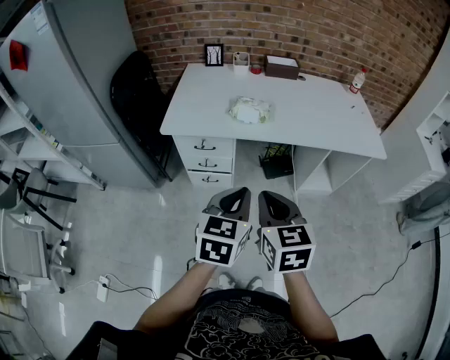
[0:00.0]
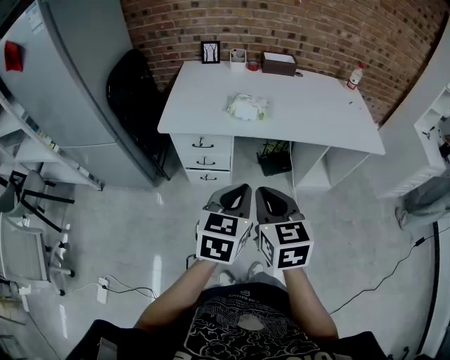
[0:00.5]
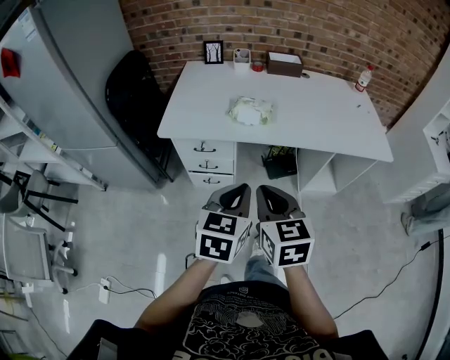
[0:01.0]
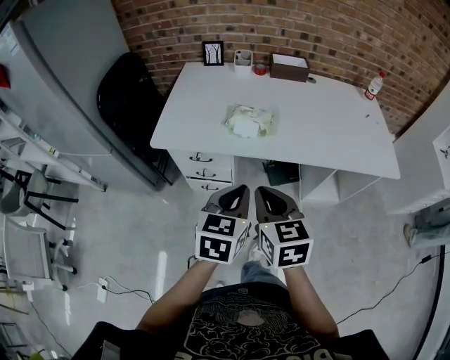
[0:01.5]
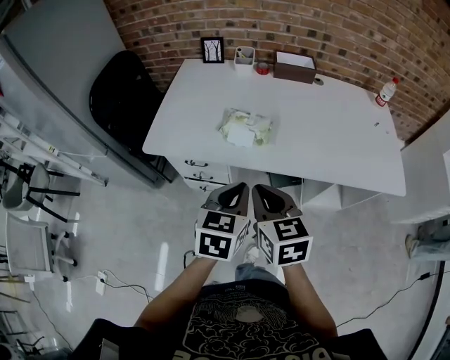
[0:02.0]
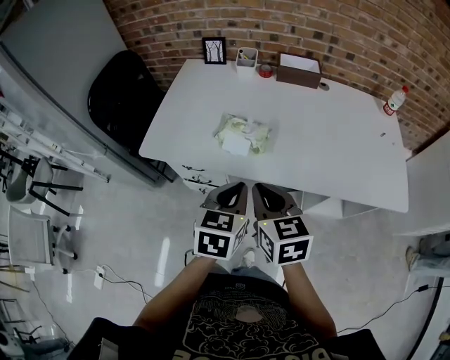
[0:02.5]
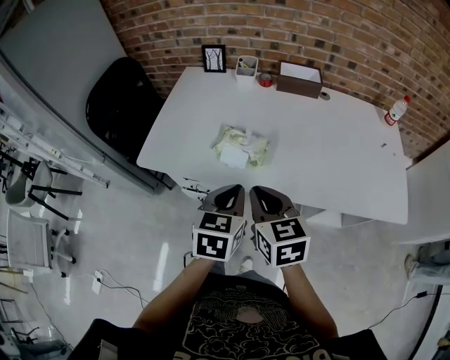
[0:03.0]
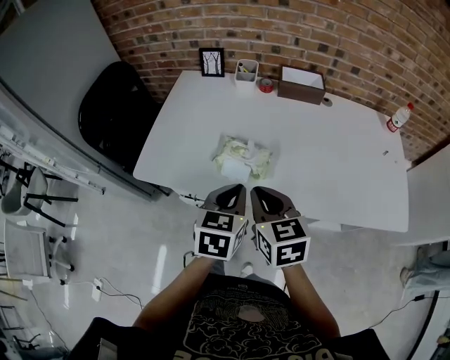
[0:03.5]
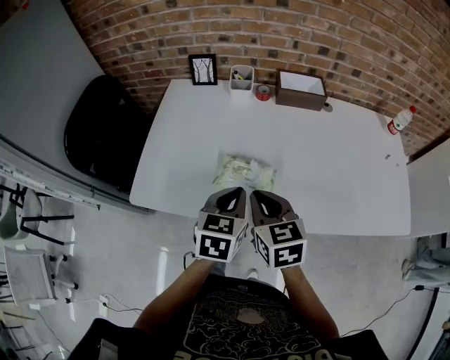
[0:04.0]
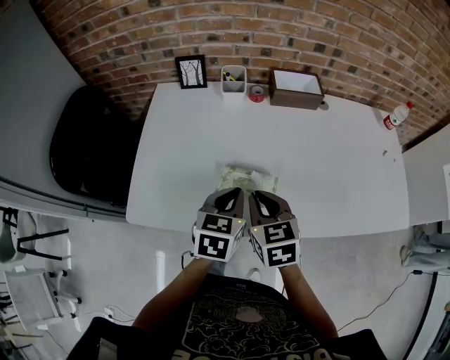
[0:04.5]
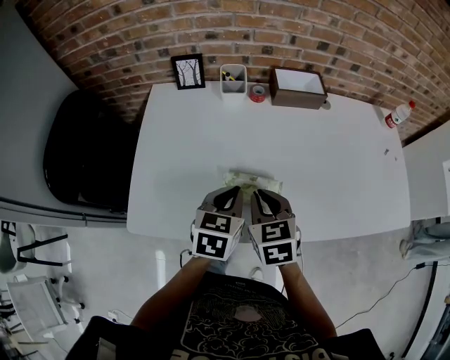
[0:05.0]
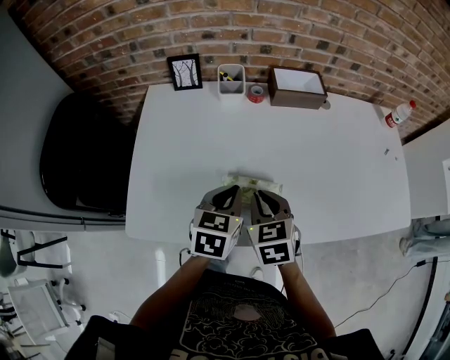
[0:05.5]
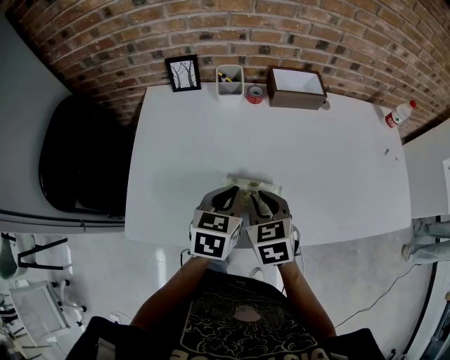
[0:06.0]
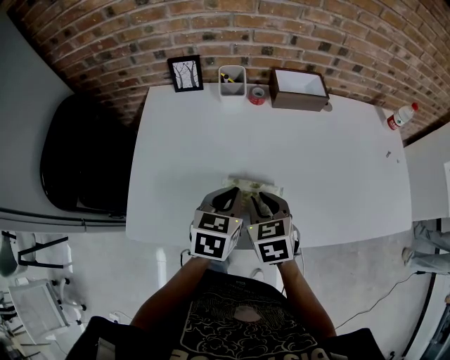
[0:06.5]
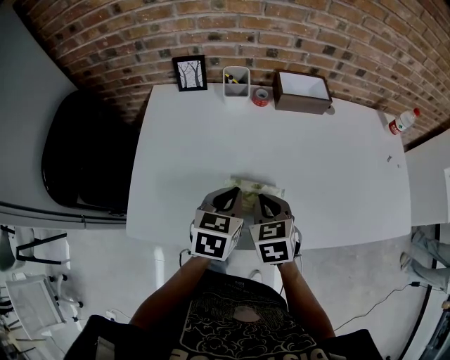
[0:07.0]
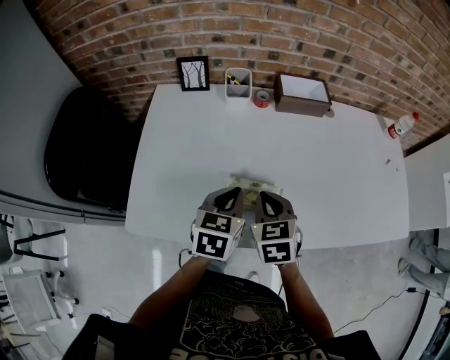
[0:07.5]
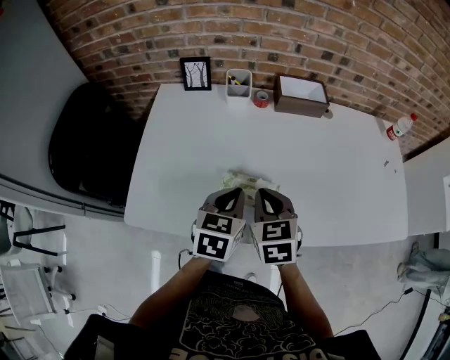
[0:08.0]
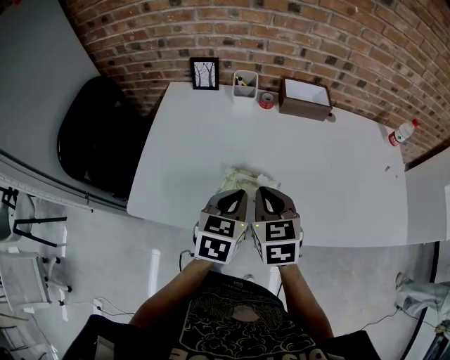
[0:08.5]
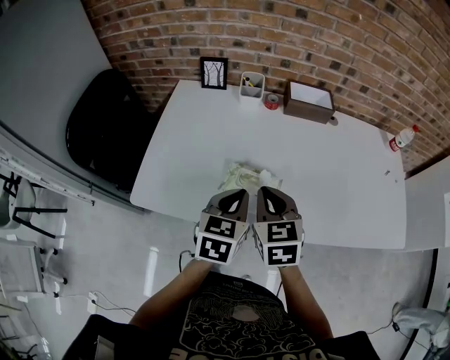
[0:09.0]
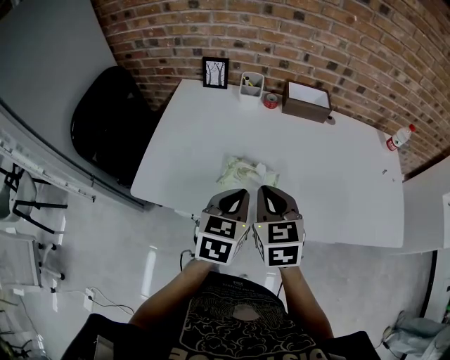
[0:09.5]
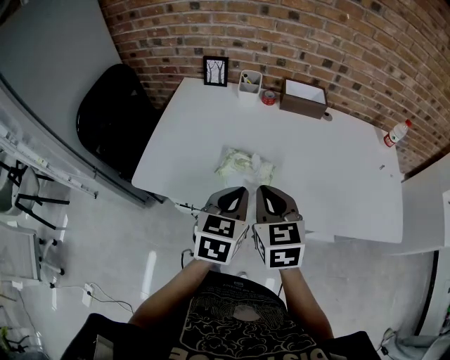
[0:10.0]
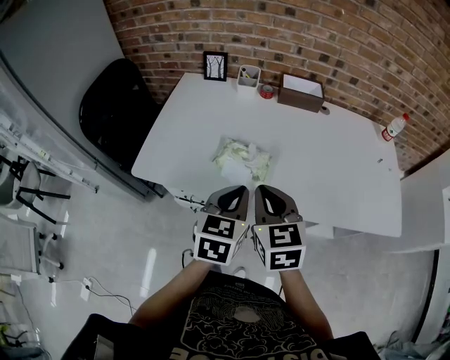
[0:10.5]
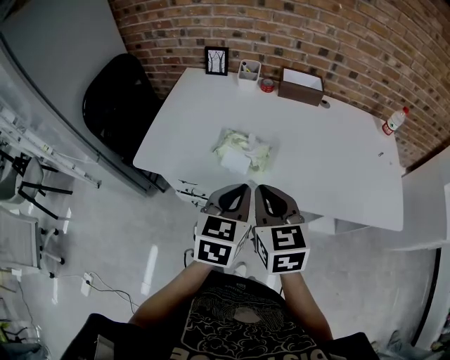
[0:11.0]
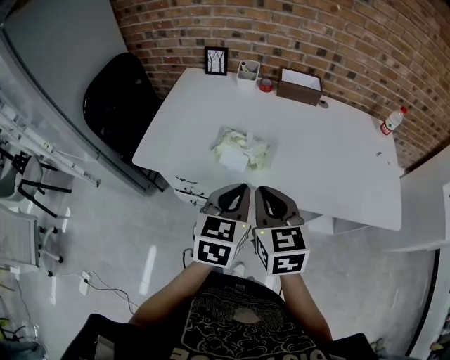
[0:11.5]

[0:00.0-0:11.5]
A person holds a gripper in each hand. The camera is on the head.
0:00.0 to 0:02.0: Both grippers travel together forward, some 20 cm.
0:02.0 to 0:04.0: The two grippers go about 20 cm forward.
0:04.0 to 0:06.0: The left gripper is displaced forward by about 10 cm. Meanwhile the right gripper travels forward and downward by roughly 10 cm.
0:06.0 to 0:07.5: The grippers make only small movements.
0:07.5 to 0:09.5: The right gripper heads upward and backward, covering approximately 10 cm, while the left gripper is displaced backward by some 10 cm.
0:09.5 to 0:11.5: The two grippers go about 10 cm backward.

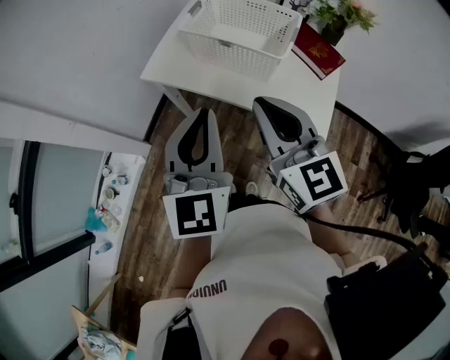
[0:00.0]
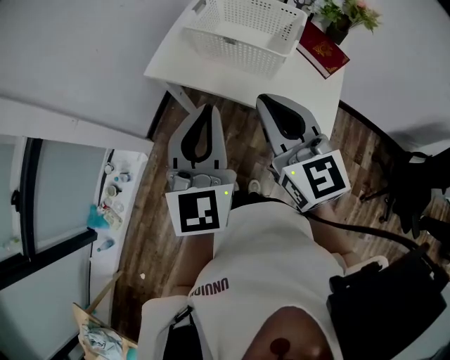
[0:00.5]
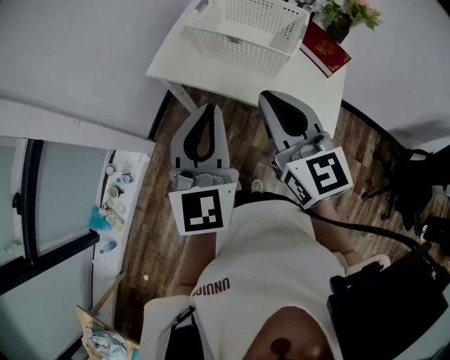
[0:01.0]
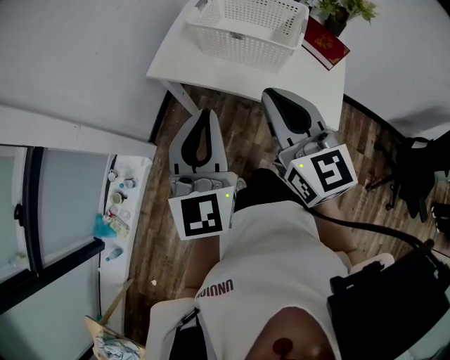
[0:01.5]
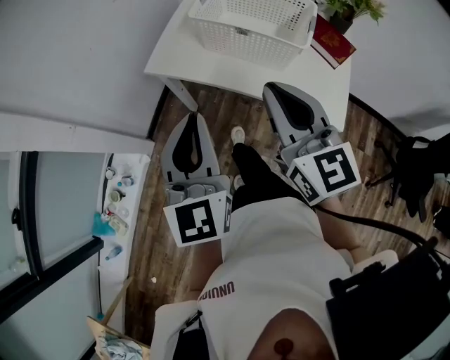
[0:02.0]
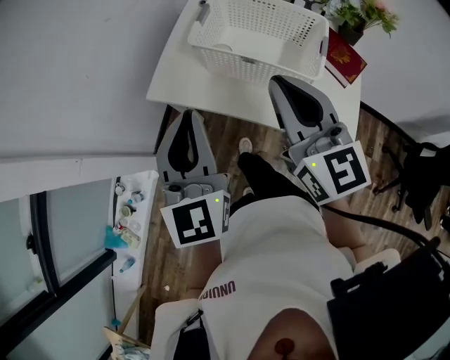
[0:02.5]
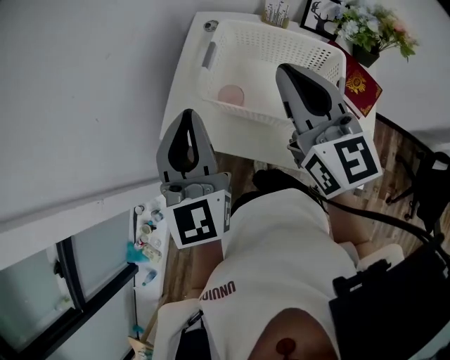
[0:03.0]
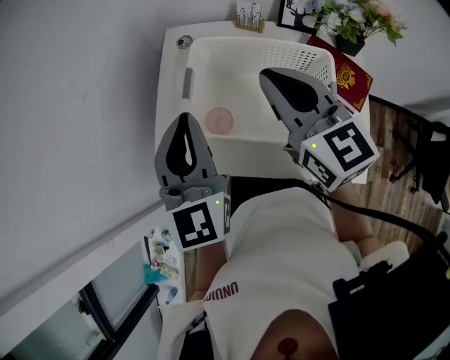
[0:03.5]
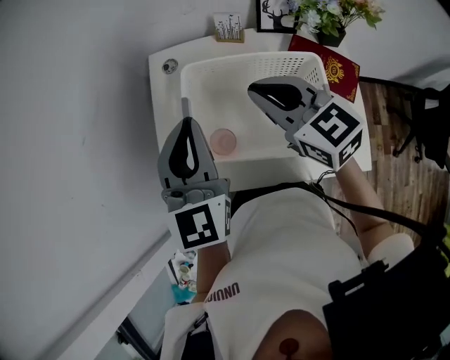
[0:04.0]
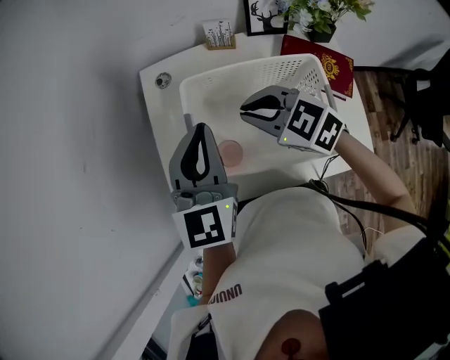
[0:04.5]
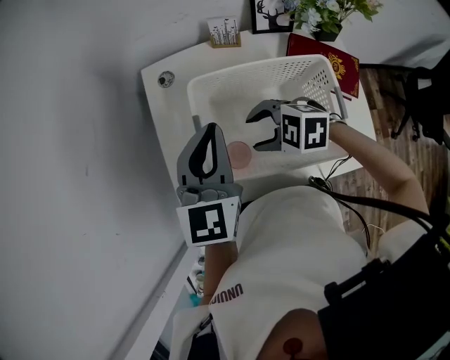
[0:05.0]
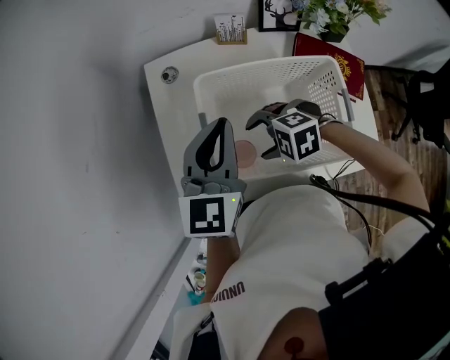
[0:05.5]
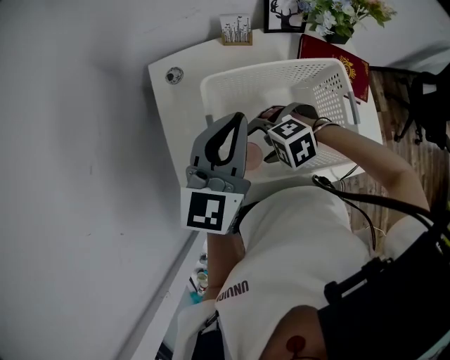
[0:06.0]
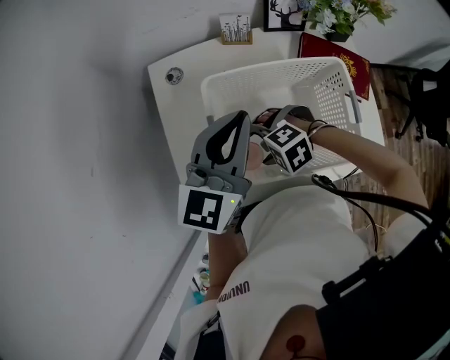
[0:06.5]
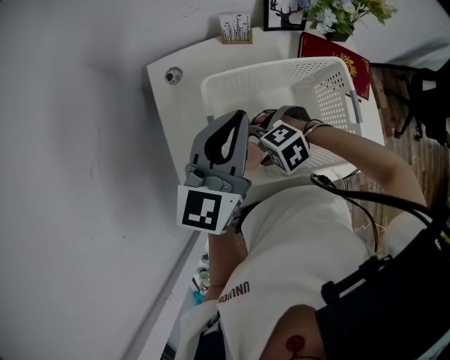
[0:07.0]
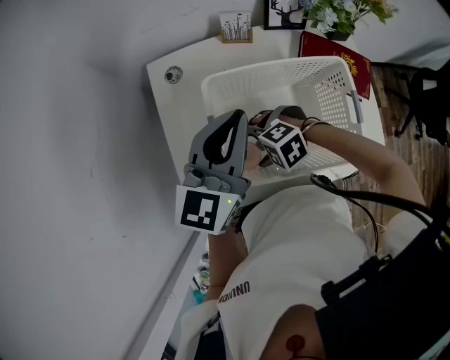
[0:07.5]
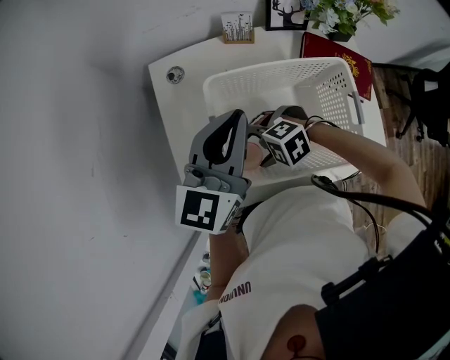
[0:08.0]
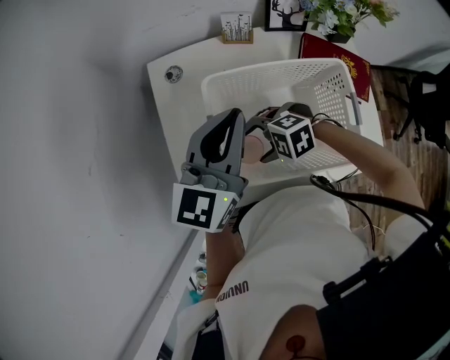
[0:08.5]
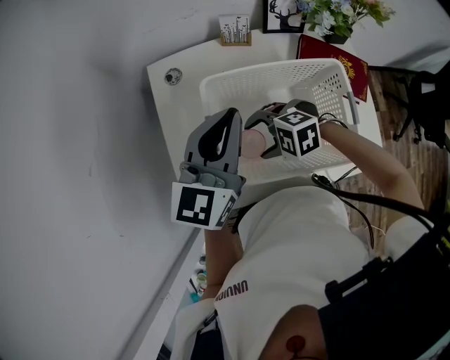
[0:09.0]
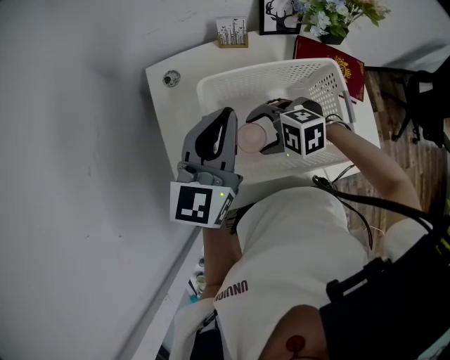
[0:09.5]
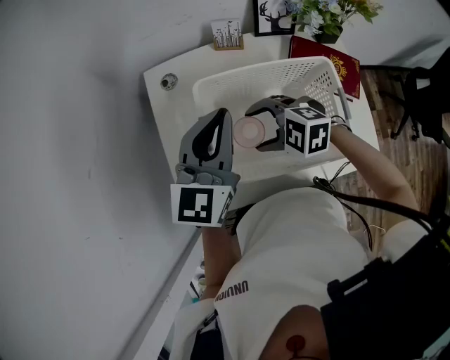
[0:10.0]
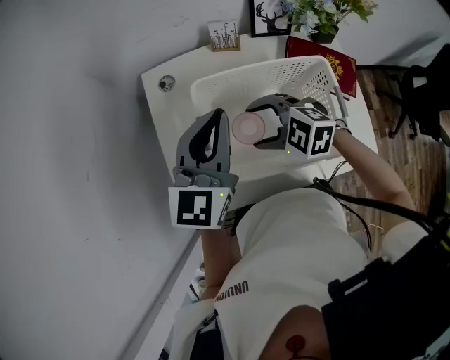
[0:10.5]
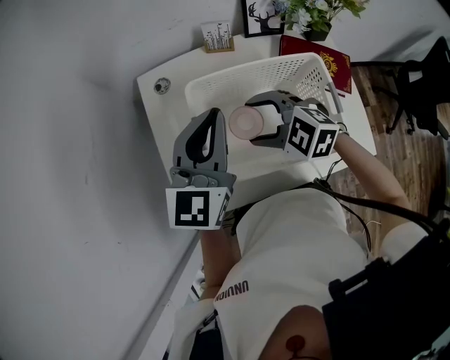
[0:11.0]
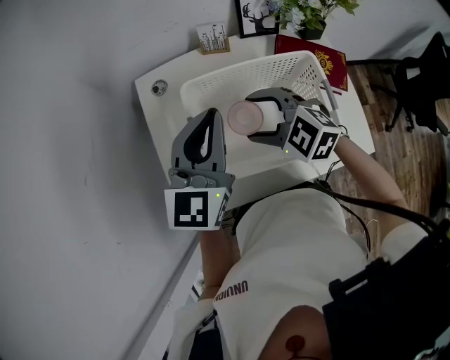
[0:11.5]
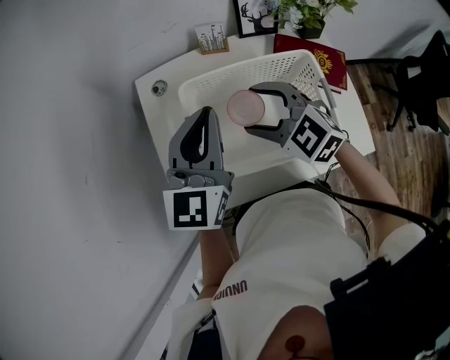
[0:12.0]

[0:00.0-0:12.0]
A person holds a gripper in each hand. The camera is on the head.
0:00.0 to 0:02.0: The left gripper is displaced to the left by approximately 10 cm, while the right gripper changes place by approximately 5 cm.
0:02.0 to 0:04.0: Both grippers travel together forward, roughly 35 cm. The left gripper turns by about 20 degrees.
0:04.0 to 0:06.0: The right gripper travels downward by roughly 20 cm, tilts its fingers approximately 40 degrees downward, and opens its fingers. Meanwhile the left gripper moves some 10 cm, and changes its angle by about 30 degrees.
0:06.0 to 0:08.0: There are only small adjustments of the grippers.
0:08.0 to 0:10.0: The right gripper heads upward, covering approximately 10 cm, and rotates some 30 degrees.
0:10.0 to 0:12.0: The right gripper is displaced upward by some 10 cm, and swivels roughly 30 degrees.

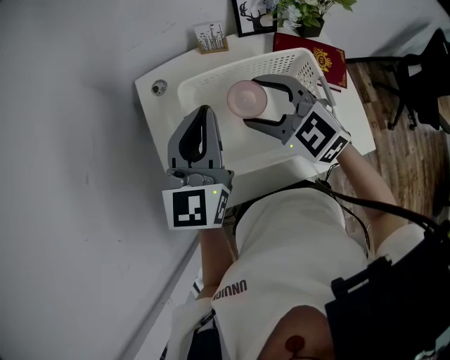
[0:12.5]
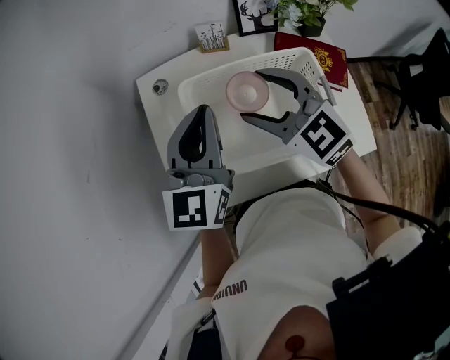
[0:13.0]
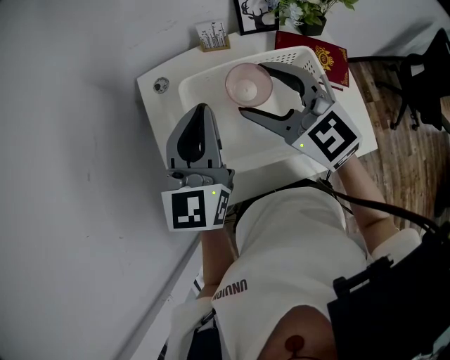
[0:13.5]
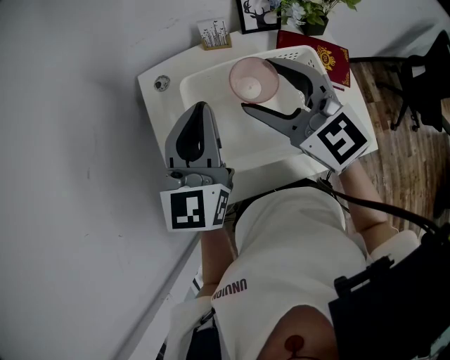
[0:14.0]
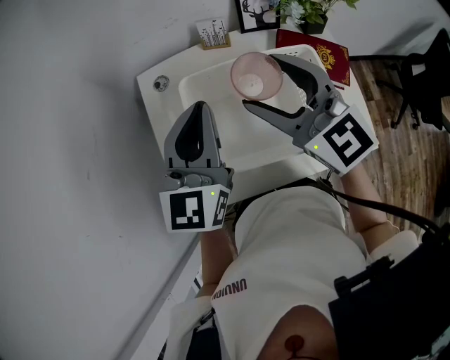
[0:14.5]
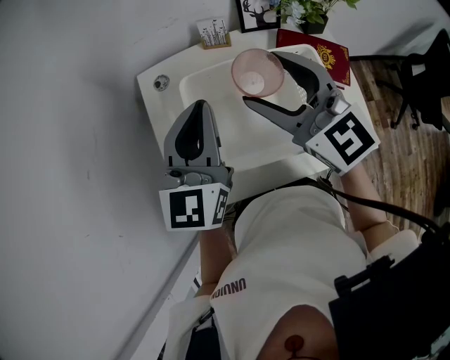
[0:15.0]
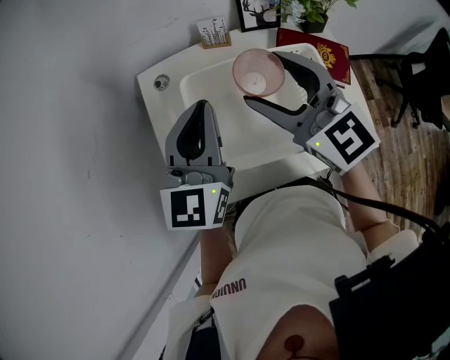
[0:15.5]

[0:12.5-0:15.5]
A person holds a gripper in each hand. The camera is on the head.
0:12.5 to 0:14.0: The right gripper is displaced upward by some 10 cm, and swivels roughly 20 degrees.
0:14.0 to 0:15.5: The grippers make only small movements.
